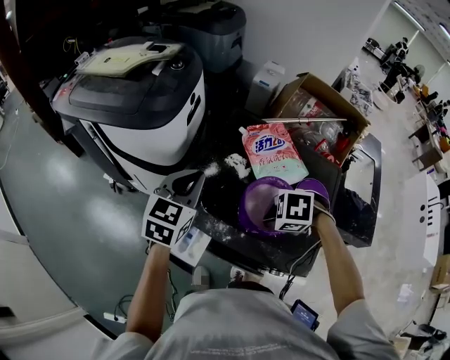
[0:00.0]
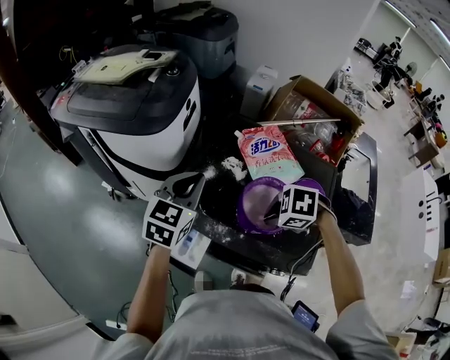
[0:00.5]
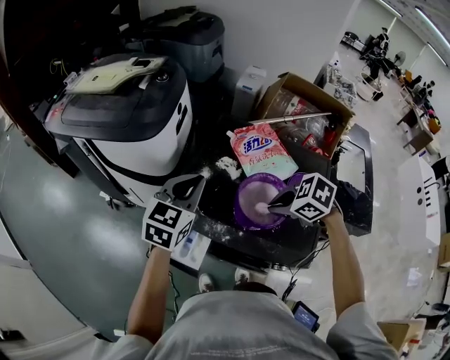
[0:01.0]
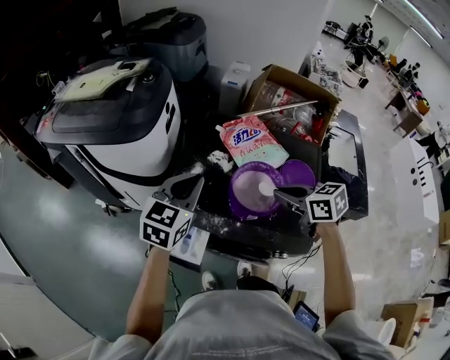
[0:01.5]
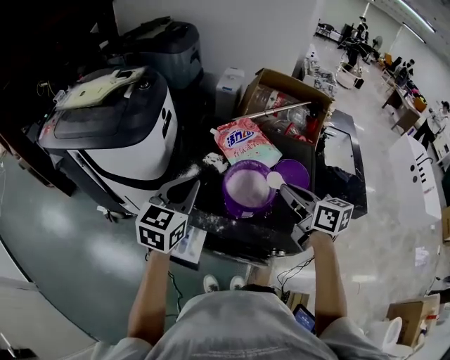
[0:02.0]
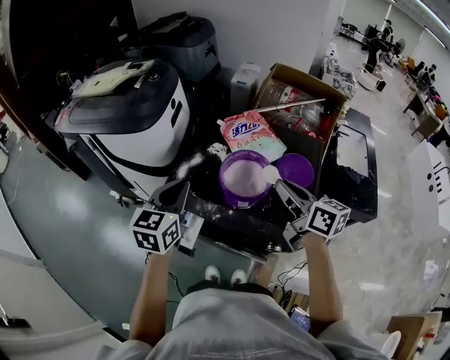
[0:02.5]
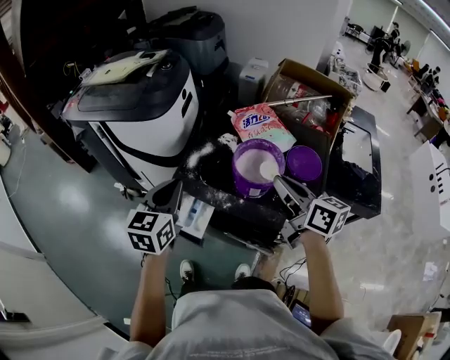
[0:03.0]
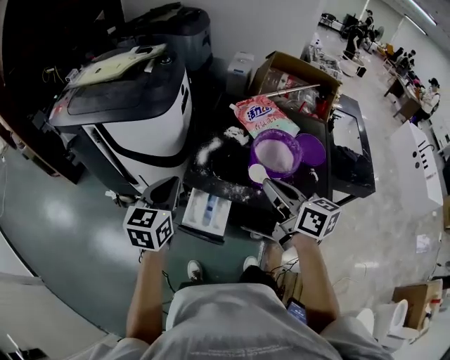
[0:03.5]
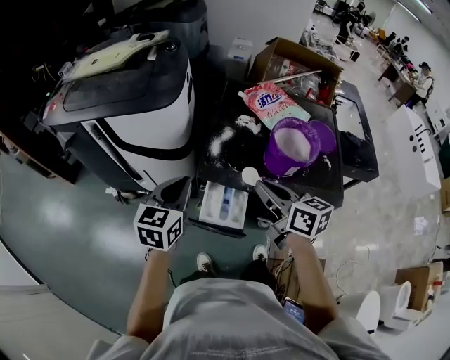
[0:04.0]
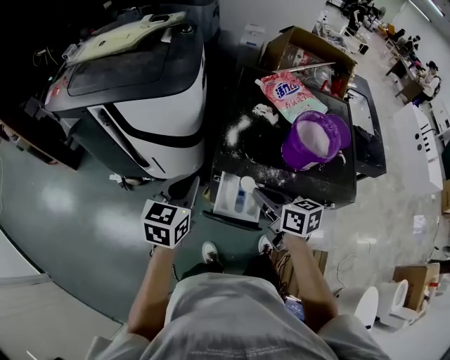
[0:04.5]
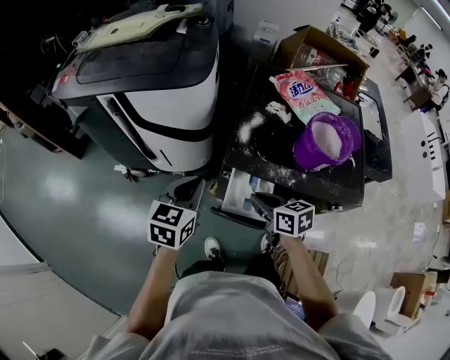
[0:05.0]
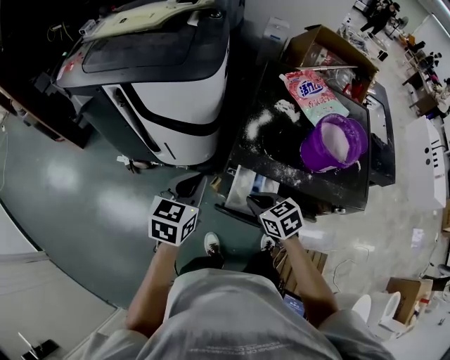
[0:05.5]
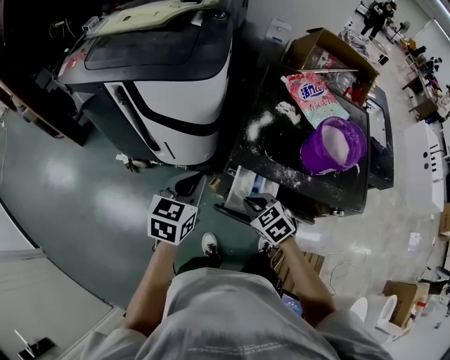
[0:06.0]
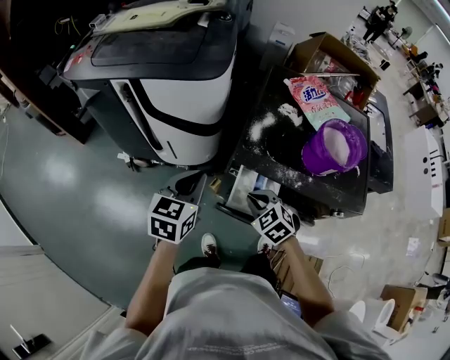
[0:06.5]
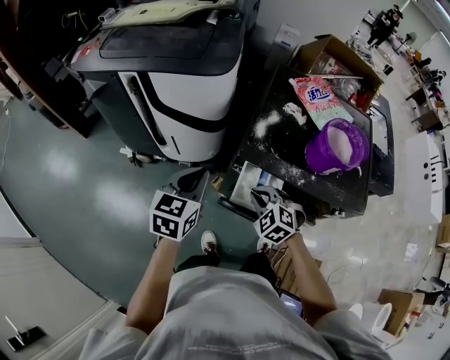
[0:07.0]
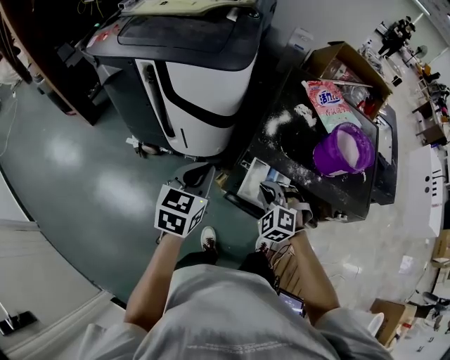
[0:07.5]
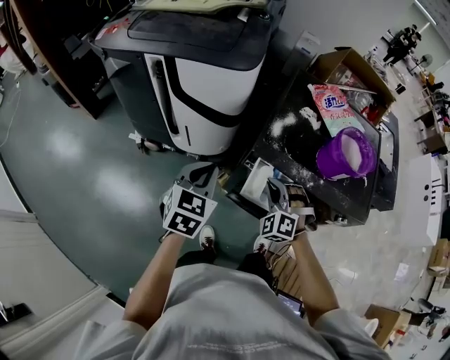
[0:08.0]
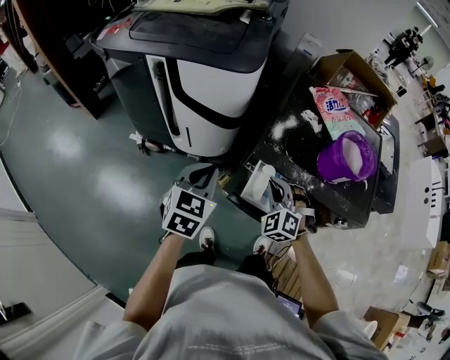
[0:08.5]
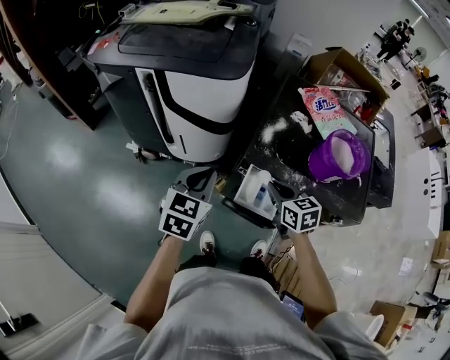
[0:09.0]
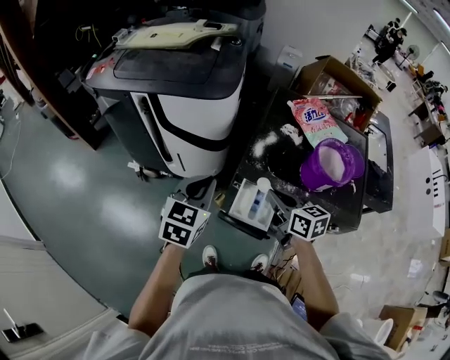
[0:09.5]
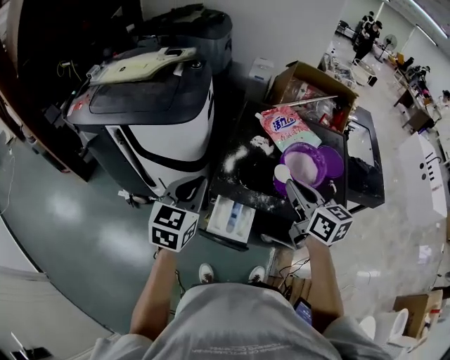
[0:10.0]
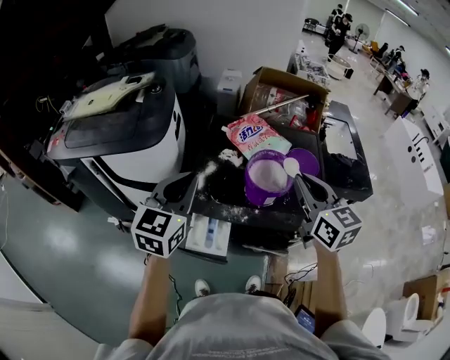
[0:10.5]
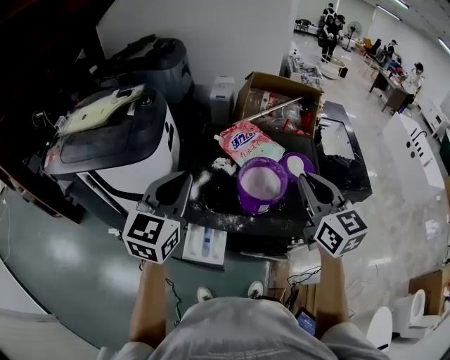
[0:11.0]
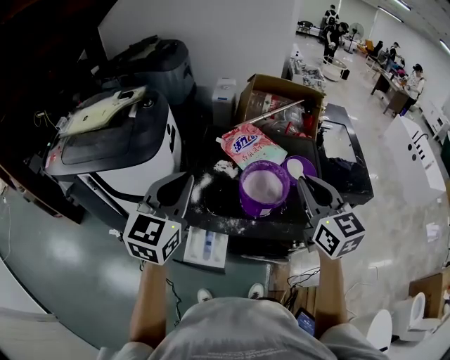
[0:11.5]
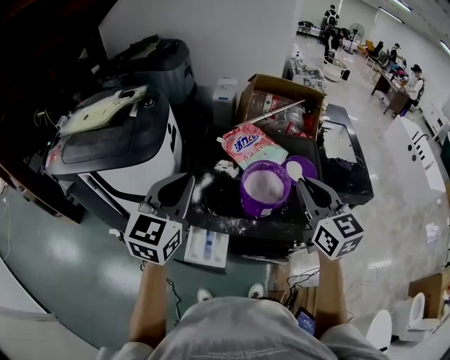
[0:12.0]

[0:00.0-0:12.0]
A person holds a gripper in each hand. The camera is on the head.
0:00.0 to 0:02.0: The left gripper changes place by some 10 cm, while the right gripper travels upward by approximately 10 cm, and tilts its fingers some 60 degrees upward.
0:02.0 to 0:04.0: The left gripper is displaced to the left and downward by about 20 cm. The right gripper shifts some 25 cm to the left.
0:04.0 to 0:06.0: The left gripper shifts roughly 10 cm to the left and downward. The right gripper goes approximately 25 cm downward and to the left, and tips its fingers downward by about 40 degrees.
0:06.0 to 0:08.0: The right gripper rotates around the line of its fingers by about 50 degrees, counterclockwise from behind.
0:08.0 to 0:10.0: The left gripper shifts approximately 15 cm upward, to the right and forward, while the right gripper shifts some 25 cm upward and to the right, and rolls clockwise, seen from behind, by roughly 90 degrees.
0:10.0 to 0:12.0: The left gripper travels upward, to the right and forward by some 15 cm, while the right gripper goes about 15 cm to the right and upward, and changes its angle by about 30 degrees.

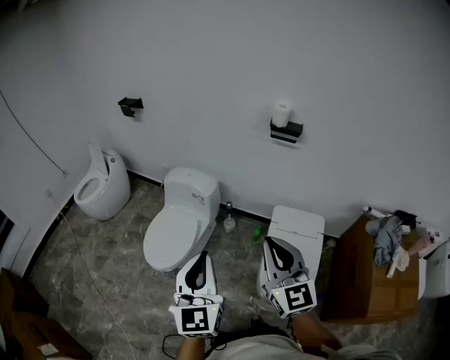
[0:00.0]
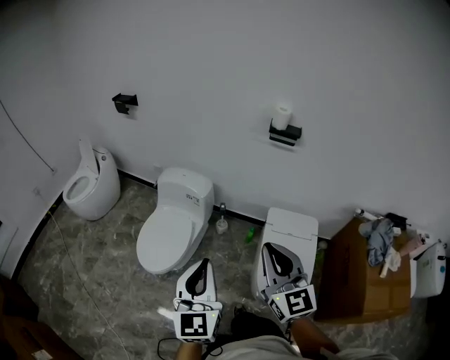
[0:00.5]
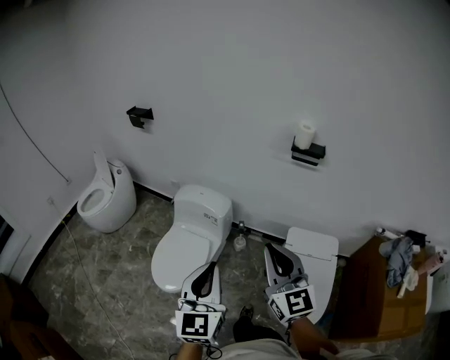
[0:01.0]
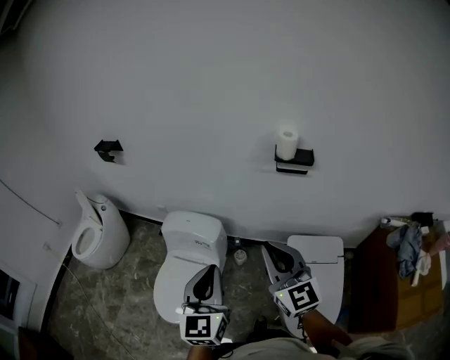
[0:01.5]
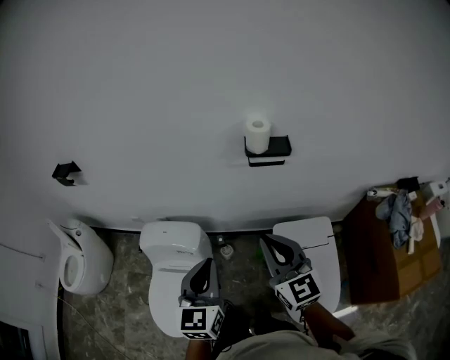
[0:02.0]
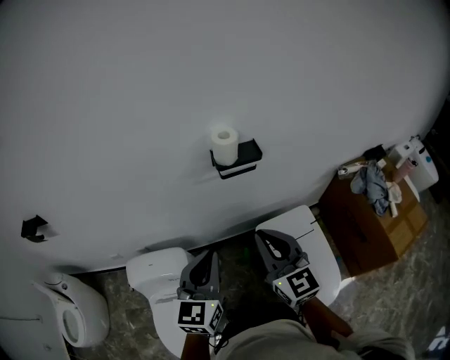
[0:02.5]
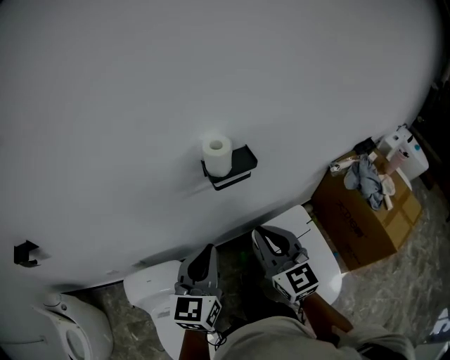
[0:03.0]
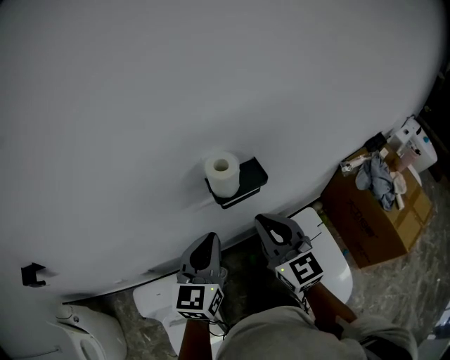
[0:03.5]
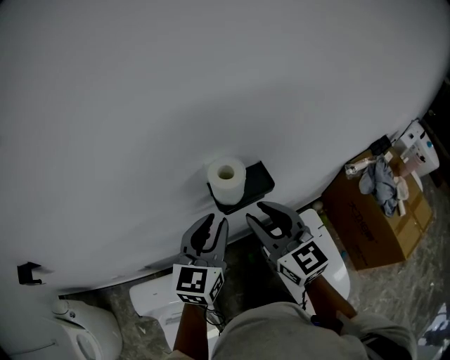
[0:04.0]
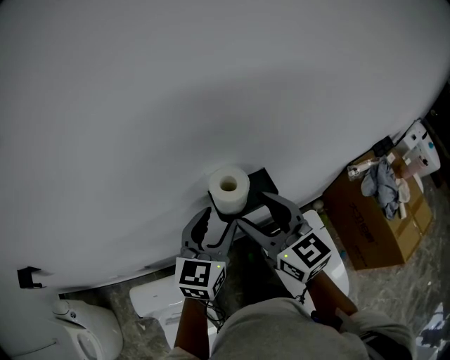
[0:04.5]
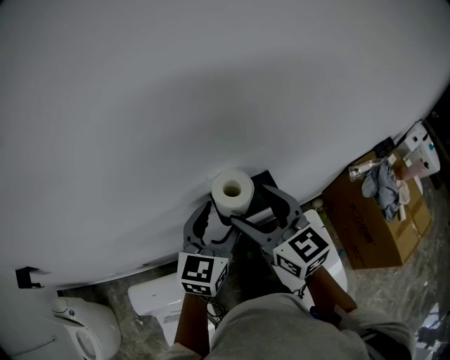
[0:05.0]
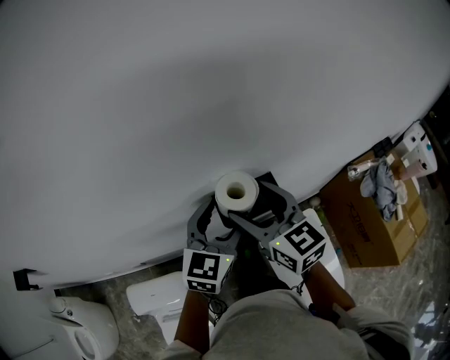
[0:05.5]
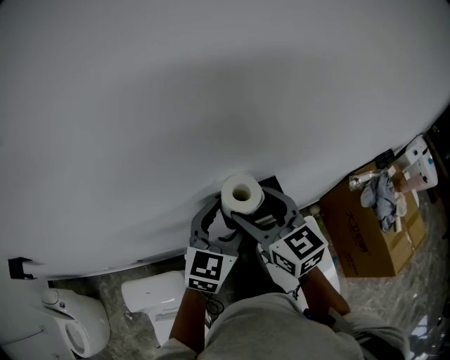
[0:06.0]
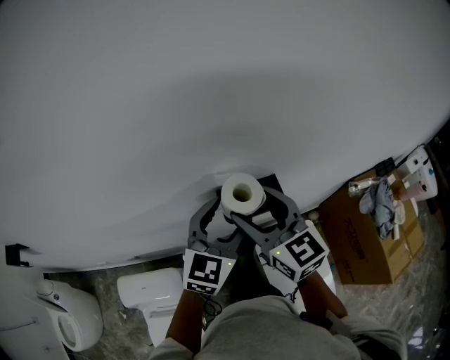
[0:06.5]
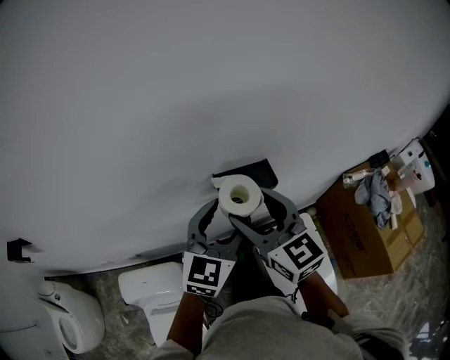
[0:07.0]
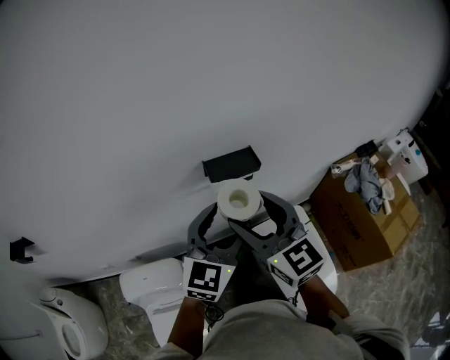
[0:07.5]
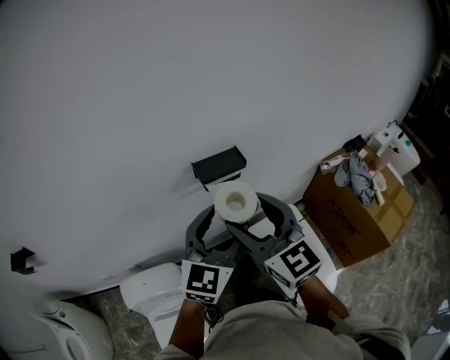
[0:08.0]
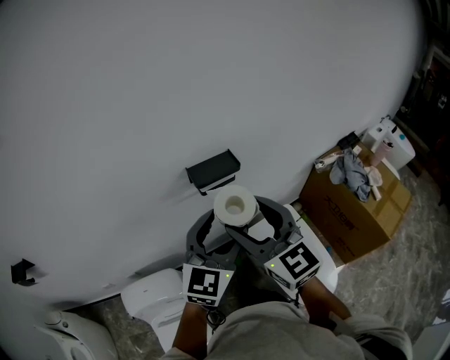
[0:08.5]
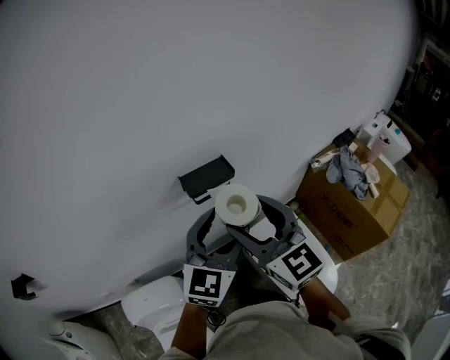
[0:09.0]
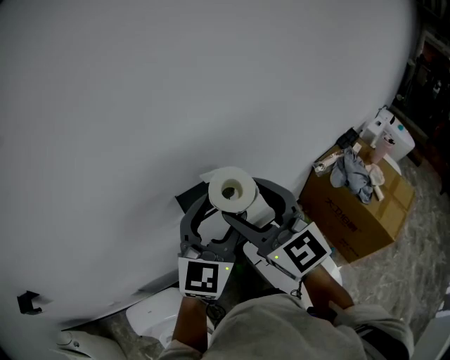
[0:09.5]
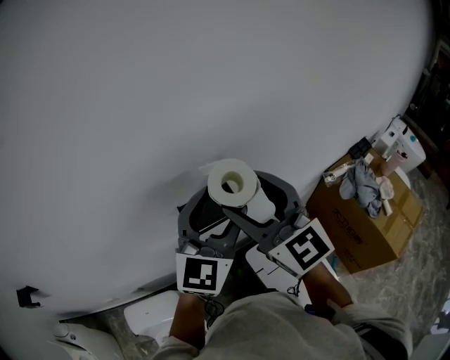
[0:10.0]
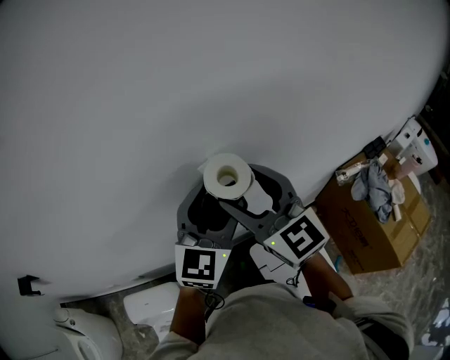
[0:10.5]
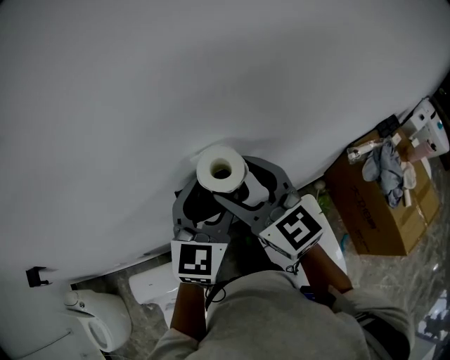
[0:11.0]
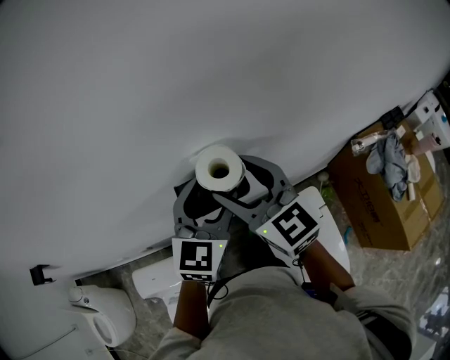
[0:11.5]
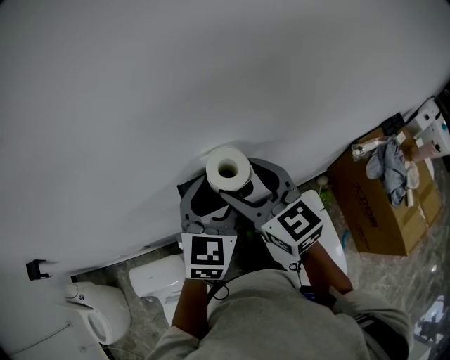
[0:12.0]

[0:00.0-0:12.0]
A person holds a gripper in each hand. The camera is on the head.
0:00.0 to 0:02.0: The two grippers go some 35 cm forward. The left gripper turns by about 30 degrees.
0:02.0 to 0:04.0: The two grippers go some 30 cm forward. The right gripper opens its fingers, while the left gripper swivels roughly 30 degrees.
0:04.0 to 0:06.0: The grippers both shift forward by approximately 10 cm. The right gripper opens. The left gripper opens.
0:06.0 to 0:08.0: The grippers both shift backward by roughly 25 cm.
0:08.0 to 0:10.0: The left gripper moves forward and upward, about 20 cm. Meanwhile the right gripper goes about 15 cm forward.
0:10.0 to 0:12.0: Both grippers move downward and forward, approximately 15 cm. The right gripper rotates some 20 degrees, while the left gripper changes its angle by some 30 degrees.

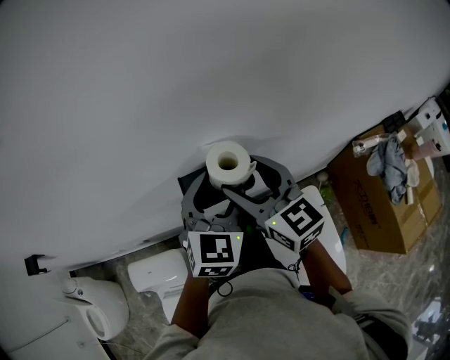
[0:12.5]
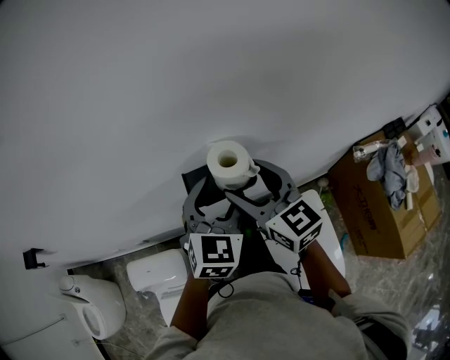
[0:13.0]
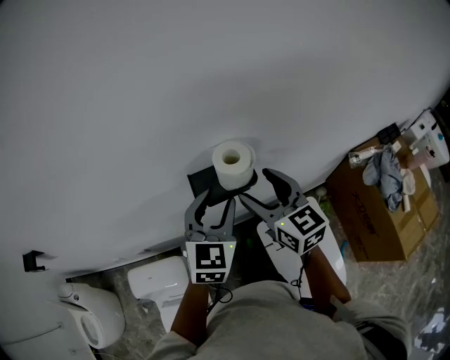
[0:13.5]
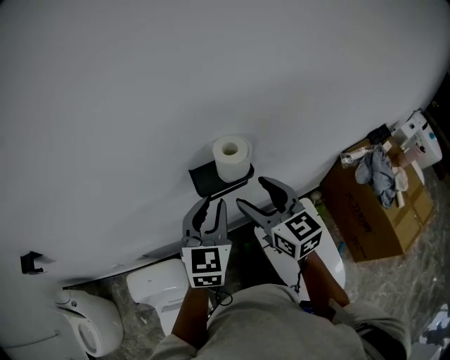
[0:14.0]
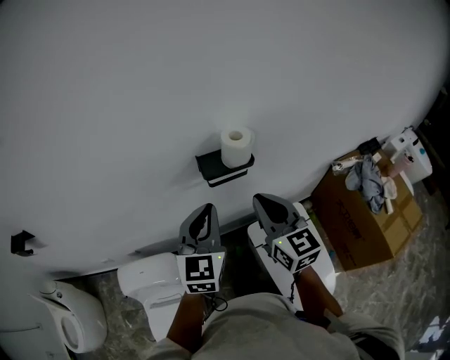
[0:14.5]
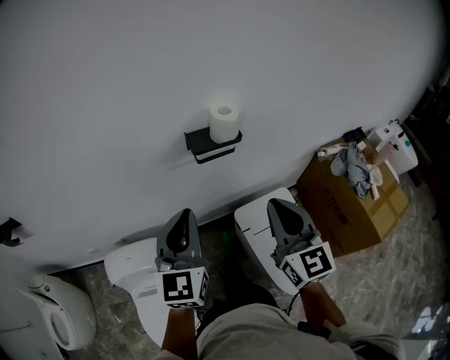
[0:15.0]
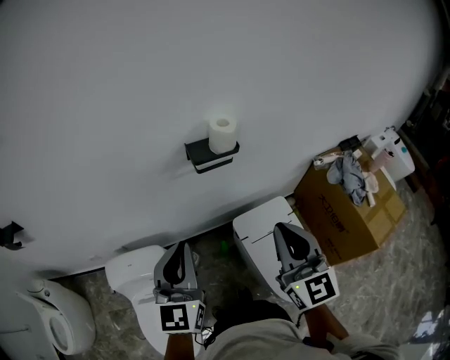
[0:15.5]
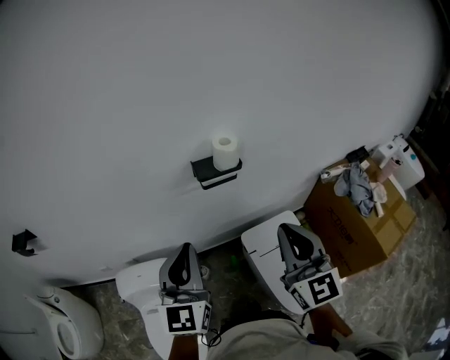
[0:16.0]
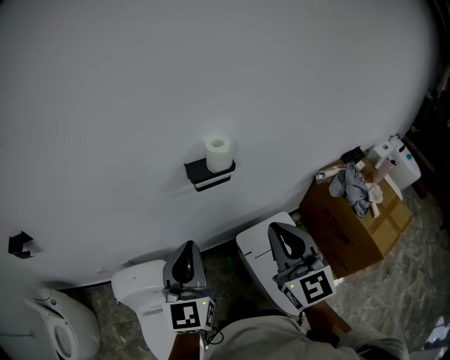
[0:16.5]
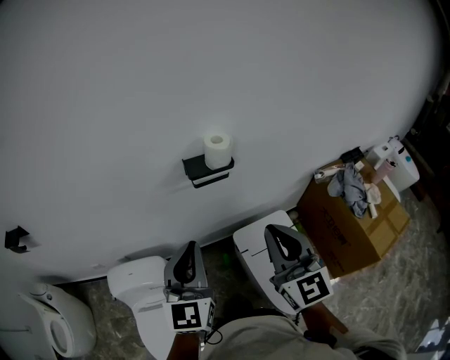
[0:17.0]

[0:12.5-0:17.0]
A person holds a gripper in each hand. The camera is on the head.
0:12.5 to 0:14.5: The right gripper travels backward by about 15 cm, and closes up; the left gripper heads backward and to the left, covering approximately 20 cm, and closes up.
0:14.5 to 0:17.0: The right gripper moves backward and upward, roughly 15 cm. The left gripper is displaced backward by roughly 15 cm.
